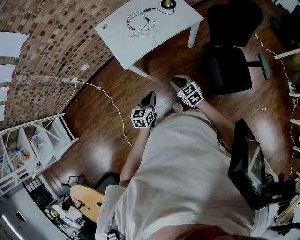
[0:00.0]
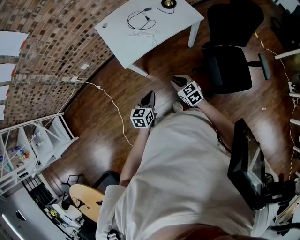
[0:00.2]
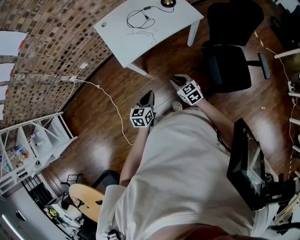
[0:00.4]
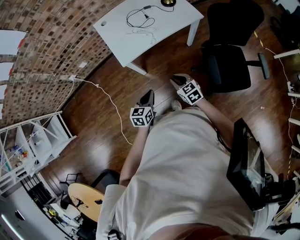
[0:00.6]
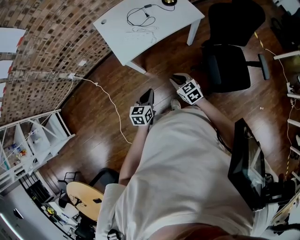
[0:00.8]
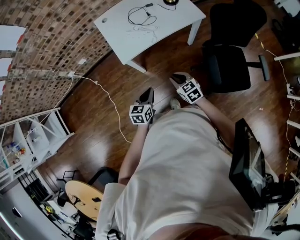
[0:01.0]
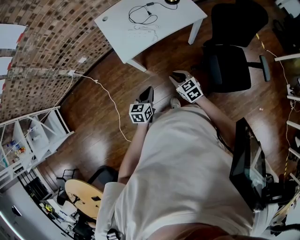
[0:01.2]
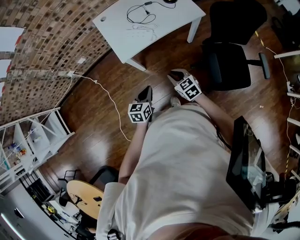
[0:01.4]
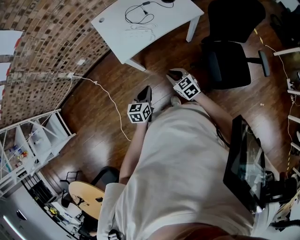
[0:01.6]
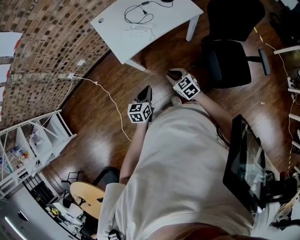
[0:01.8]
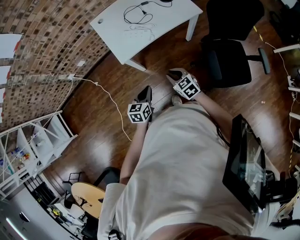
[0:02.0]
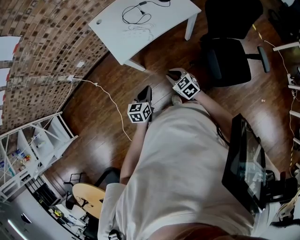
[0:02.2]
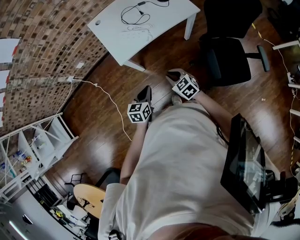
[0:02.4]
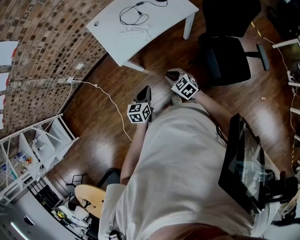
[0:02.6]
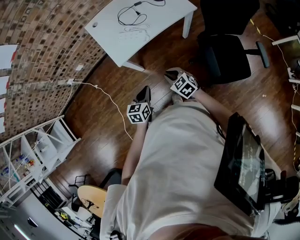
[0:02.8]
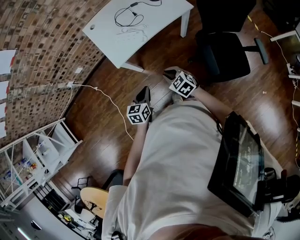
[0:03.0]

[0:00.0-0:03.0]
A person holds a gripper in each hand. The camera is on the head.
0:00.0 to 0:01.6: Both grippers stay put.
0:01.6 to 0:03.0: The grippers make only small movements.

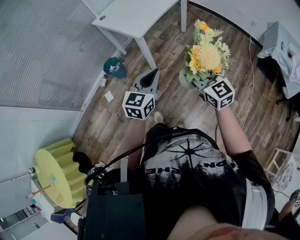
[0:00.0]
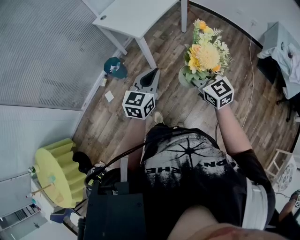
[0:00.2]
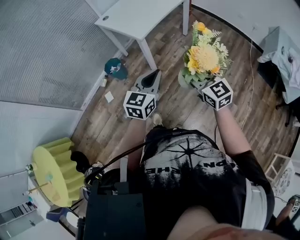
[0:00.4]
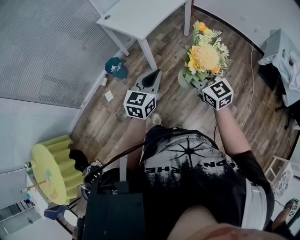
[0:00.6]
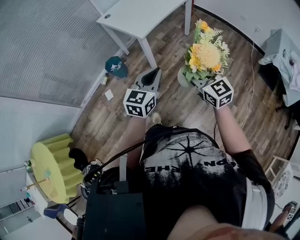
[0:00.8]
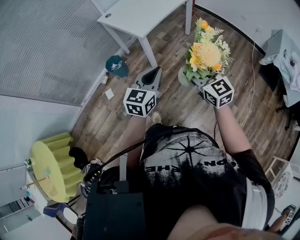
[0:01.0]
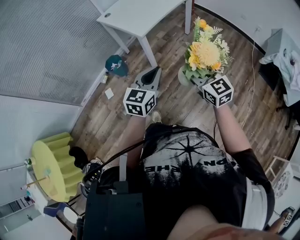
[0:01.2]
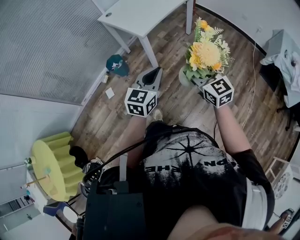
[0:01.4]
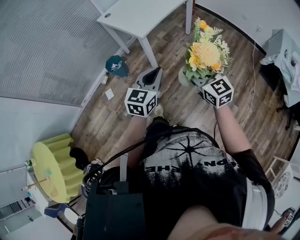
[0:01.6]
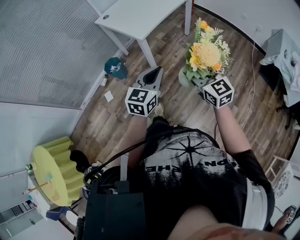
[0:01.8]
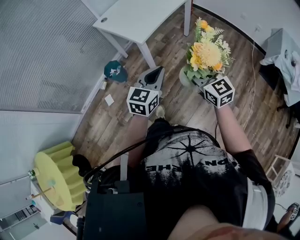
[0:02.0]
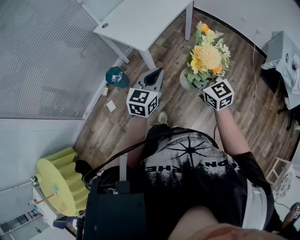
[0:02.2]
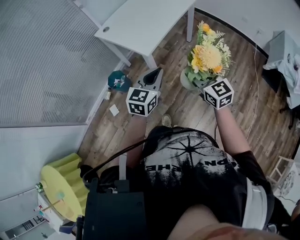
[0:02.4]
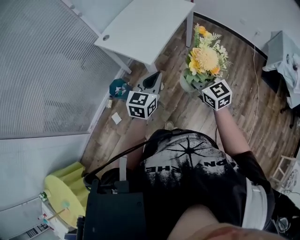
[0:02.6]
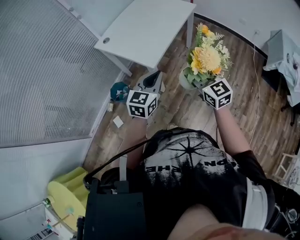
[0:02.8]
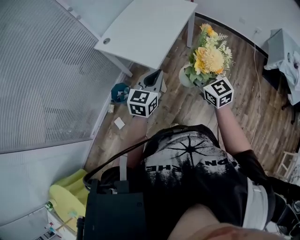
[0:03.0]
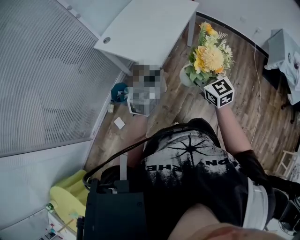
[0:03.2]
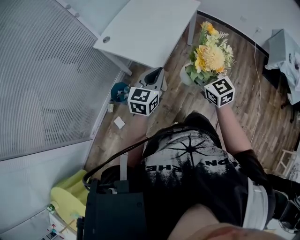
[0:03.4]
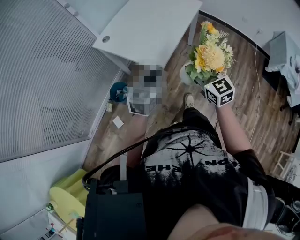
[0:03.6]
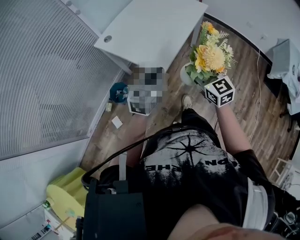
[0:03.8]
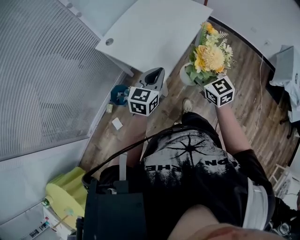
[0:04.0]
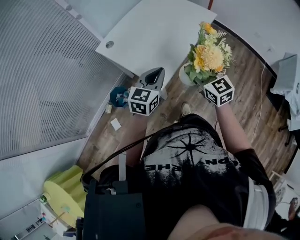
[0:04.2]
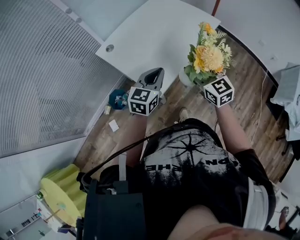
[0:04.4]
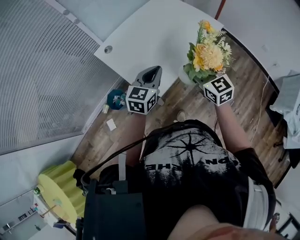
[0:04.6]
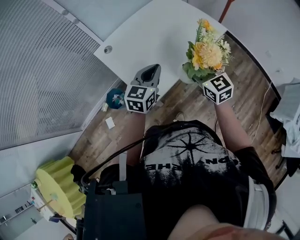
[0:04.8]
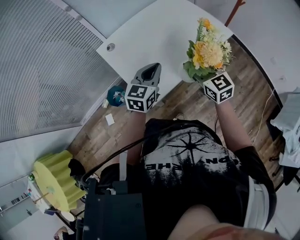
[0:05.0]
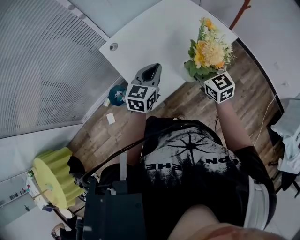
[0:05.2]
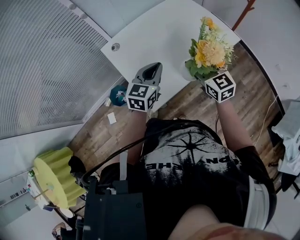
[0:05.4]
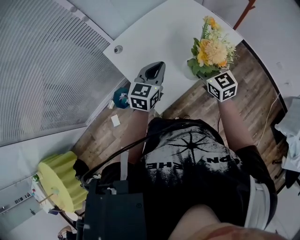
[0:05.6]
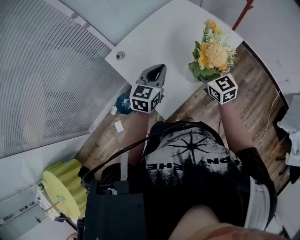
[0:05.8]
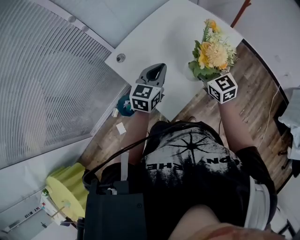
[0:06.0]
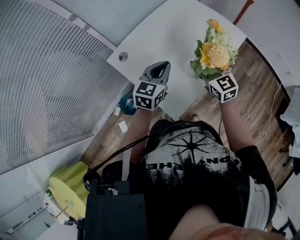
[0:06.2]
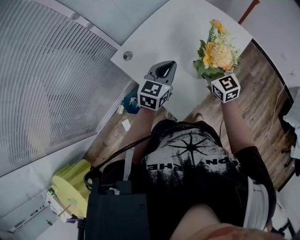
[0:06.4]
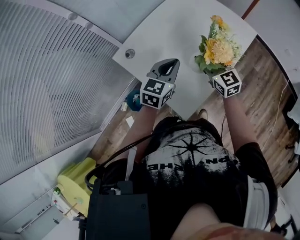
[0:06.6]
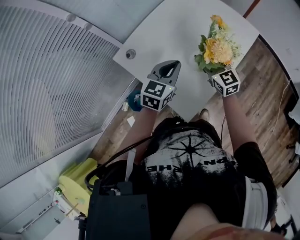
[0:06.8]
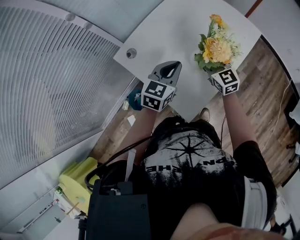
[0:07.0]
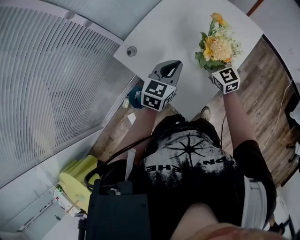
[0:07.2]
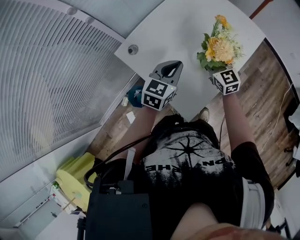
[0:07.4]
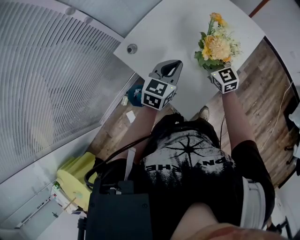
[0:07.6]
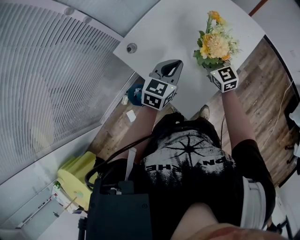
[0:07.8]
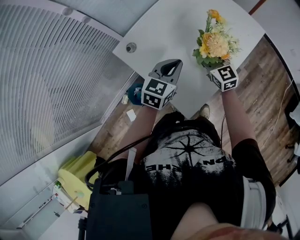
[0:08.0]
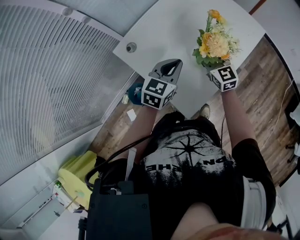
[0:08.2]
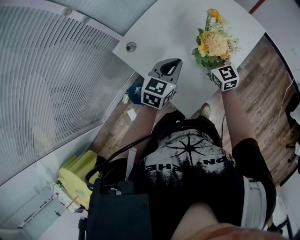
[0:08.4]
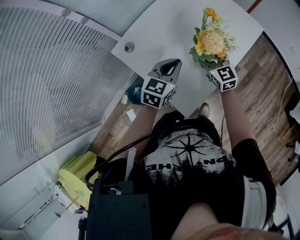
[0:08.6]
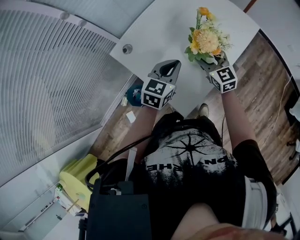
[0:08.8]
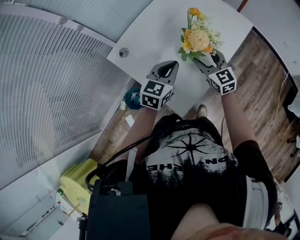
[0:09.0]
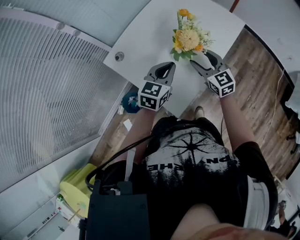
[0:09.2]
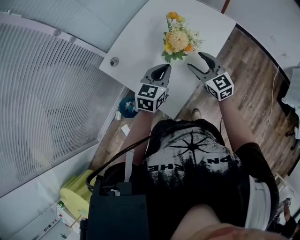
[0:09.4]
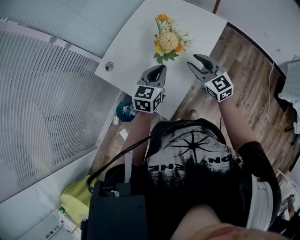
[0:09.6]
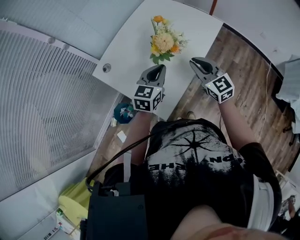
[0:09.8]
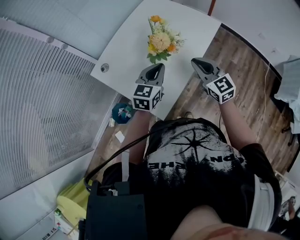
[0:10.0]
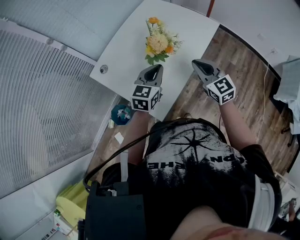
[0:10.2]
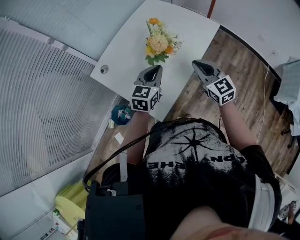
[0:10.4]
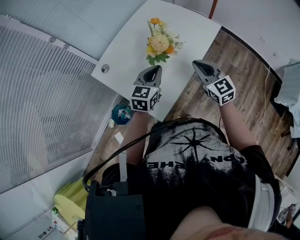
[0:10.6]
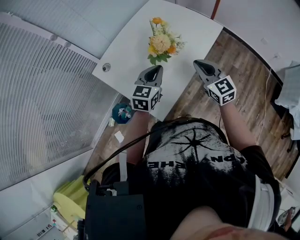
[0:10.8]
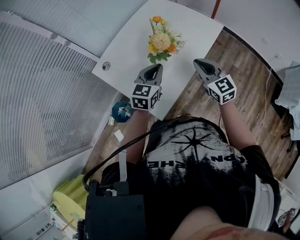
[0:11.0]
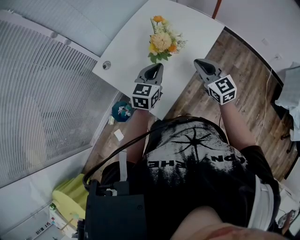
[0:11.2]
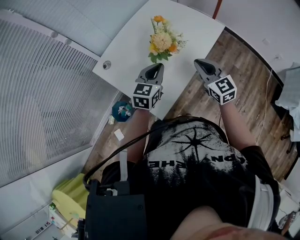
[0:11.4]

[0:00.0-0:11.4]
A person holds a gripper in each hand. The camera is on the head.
0:00.0 to 0:01.4: The grippers stay close to where they were, moving slightly.
0:01.4 to 0:02.8: Both grippers travel together forward, approximately 20 cm.
0:02.8 to 0:04.2: Both grippers move forward, approximately 15 cm.
0:04.2 to 0:05.6: The grippers both shift forward by some 20 cm.
0:05.6 to 0:07.2: The left gripper travels forward by approximately 5 cm, while the right gripper heads downward, forward and to the left, covering some 15 cm.
0:07.2 to 0:08.6: There are only small adjustments of the grippers.
0:08.6 to 0:10.0: The left gripper travels to the right by some 10 cm, while the right gripper travels to the right, backward and upward by some 15 cm, and closes up.
0:10.0 to 0:11.4: Both grippers stay put.

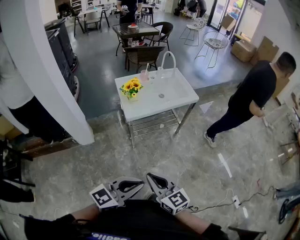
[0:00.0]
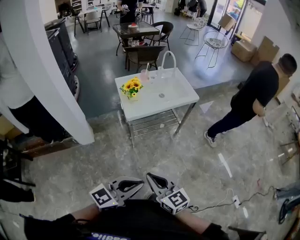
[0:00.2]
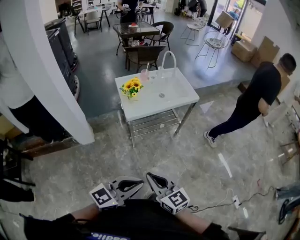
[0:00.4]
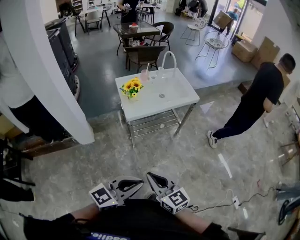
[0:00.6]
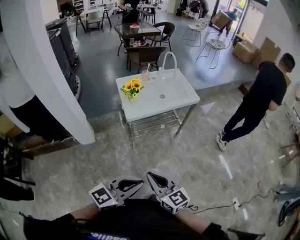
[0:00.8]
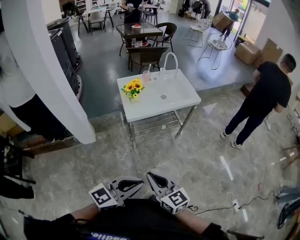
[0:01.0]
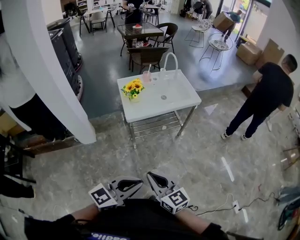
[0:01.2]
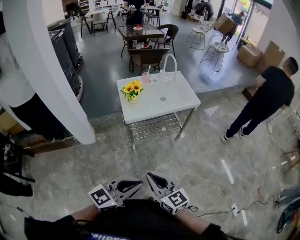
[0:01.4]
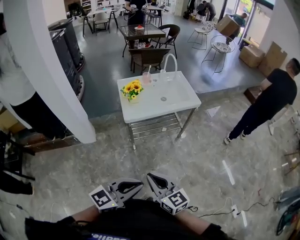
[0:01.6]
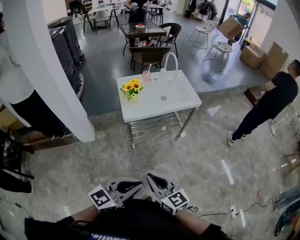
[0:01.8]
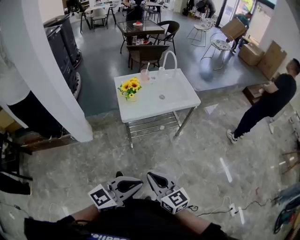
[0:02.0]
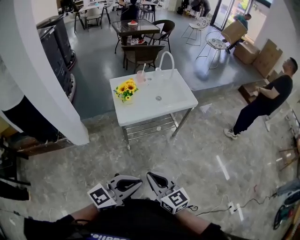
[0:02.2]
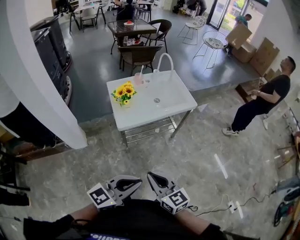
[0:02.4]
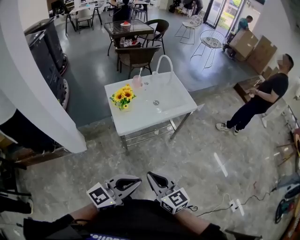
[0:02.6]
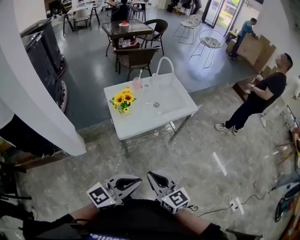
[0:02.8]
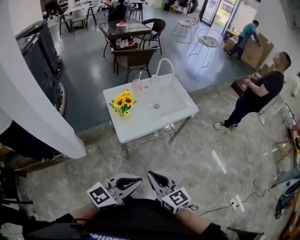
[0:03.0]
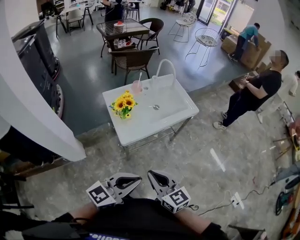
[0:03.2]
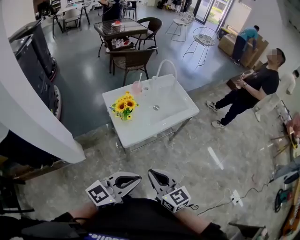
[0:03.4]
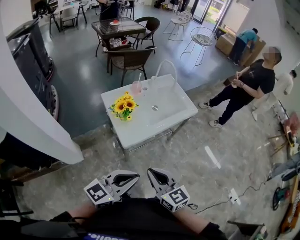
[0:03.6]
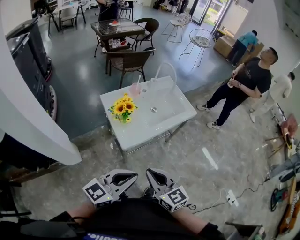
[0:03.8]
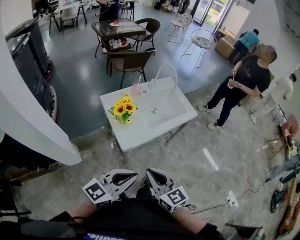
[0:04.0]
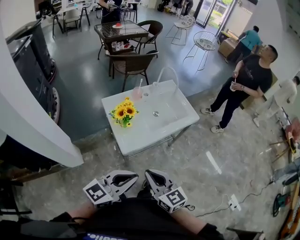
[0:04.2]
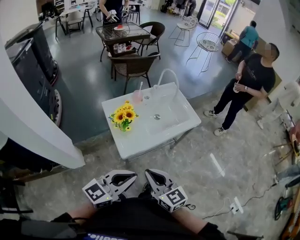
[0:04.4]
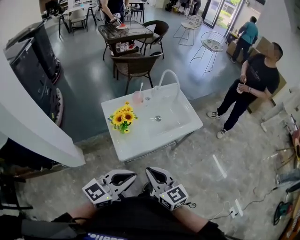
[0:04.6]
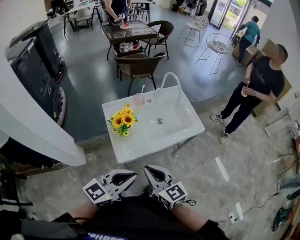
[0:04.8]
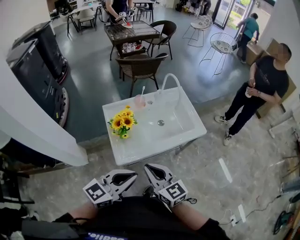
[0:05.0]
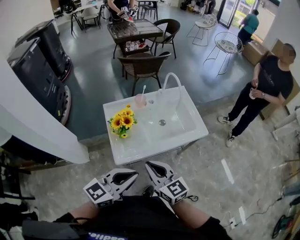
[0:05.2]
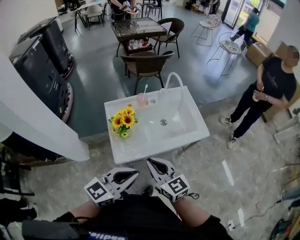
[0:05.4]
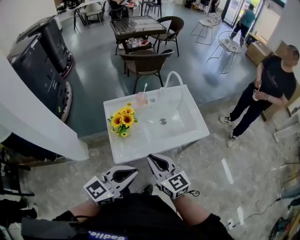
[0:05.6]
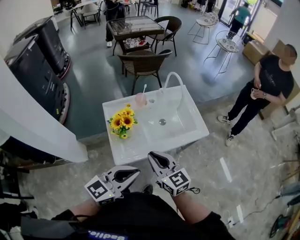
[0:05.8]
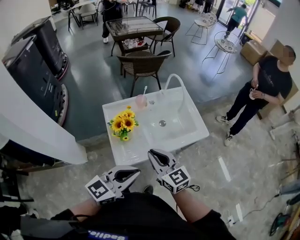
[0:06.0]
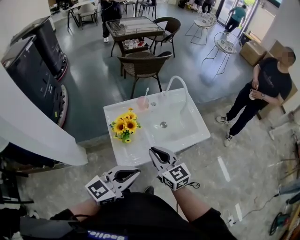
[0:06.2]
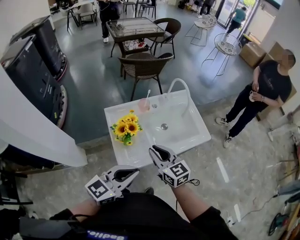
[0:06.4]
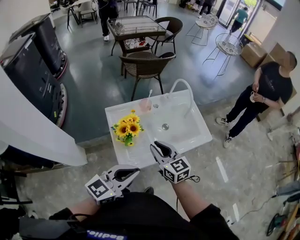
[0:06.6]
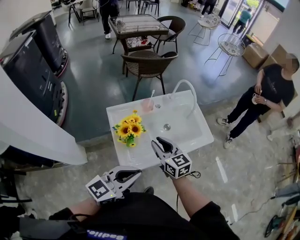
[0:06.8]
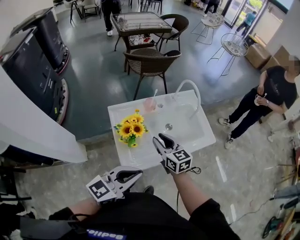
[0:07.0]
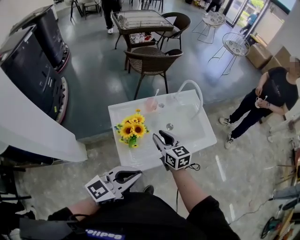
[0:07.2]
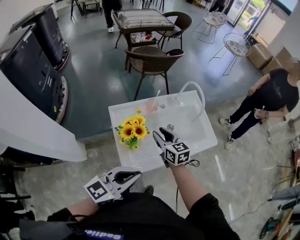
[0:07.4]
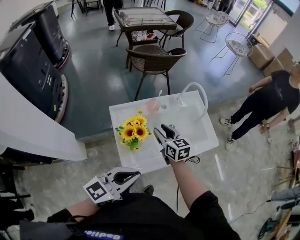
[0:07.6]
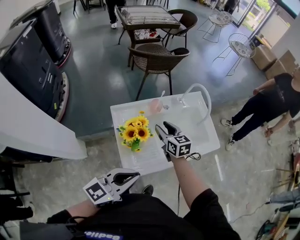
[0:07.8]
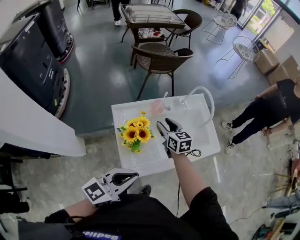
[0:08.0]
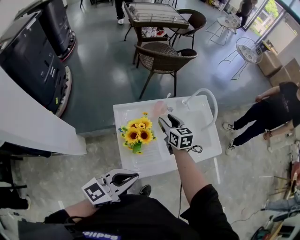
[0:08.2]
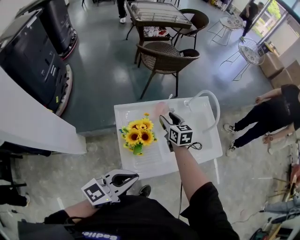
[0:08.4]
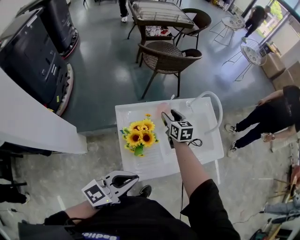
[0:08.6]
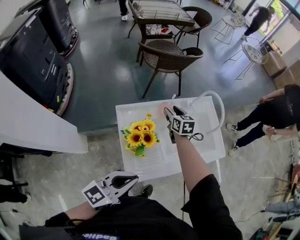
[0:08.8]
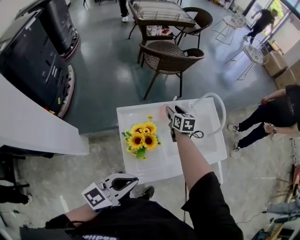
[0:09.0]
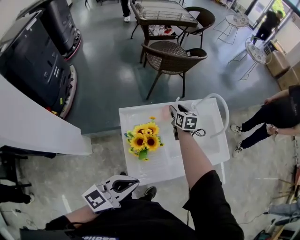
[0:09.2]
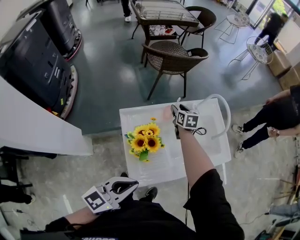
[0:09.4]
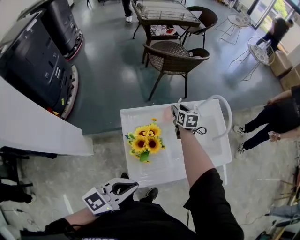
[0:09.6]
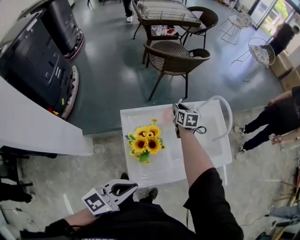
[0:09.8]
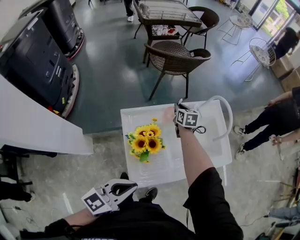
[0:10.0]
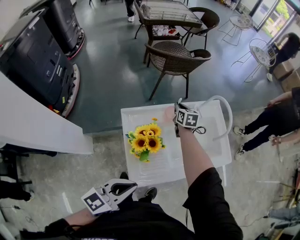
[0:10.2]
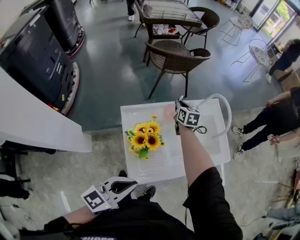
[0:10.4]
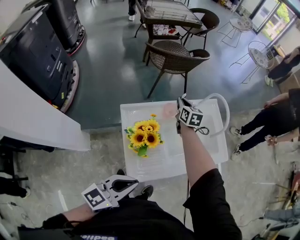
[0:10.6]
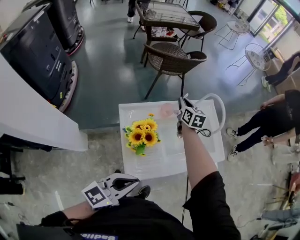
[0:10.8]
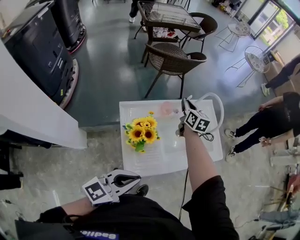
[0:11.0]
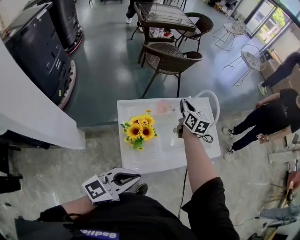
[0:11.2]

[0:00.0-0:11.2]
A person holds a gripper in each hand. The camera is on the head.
0:00.0 to 0:01.6: The left gripper ends up approximately 5 cm from where it was. Meanwhile the right gripper shifts some 5 cm to the right.
0:01.6 to 0:03.2: The grippers both shift forward and to the left by about 25 cm.
0:03.2 to 0:04.8: The grippers both shift forward by roughly 15 cm.
0:04.8 to 0:06.4: The right gripper travels forward by approximately 15 cm; the left gripper is displaced forward by some 10 cm.
0:06.4 to 0:08.0: The right gripper travels forward and downward by about 25 cm, and opens up. The left gripper moves to the left and forward, approximately 10 cm.
0:08.0 to 0:09.6: The right gripper shifts about 20 cm forward and downward.
0:09.6 to 0:11.2: The left gripper ends up about 5 cm from where it was. The right gripper is displaced upward by some 15 cm, and closes its fingers.
